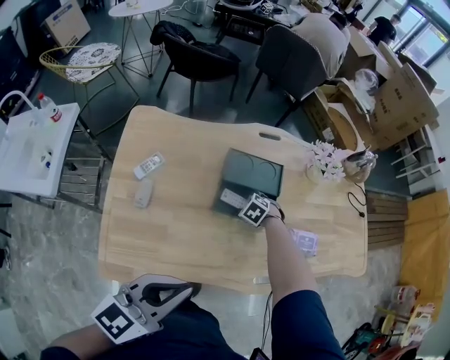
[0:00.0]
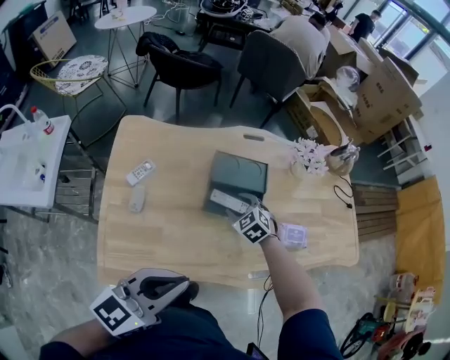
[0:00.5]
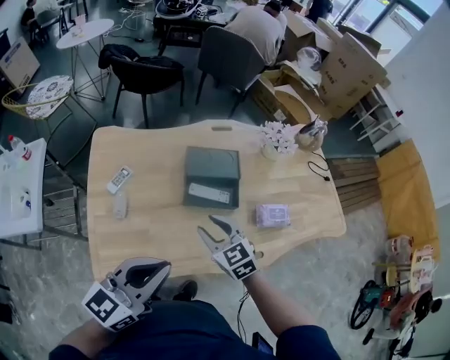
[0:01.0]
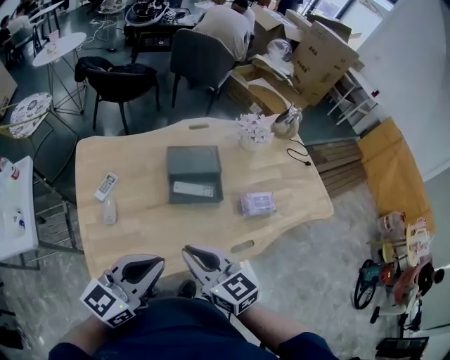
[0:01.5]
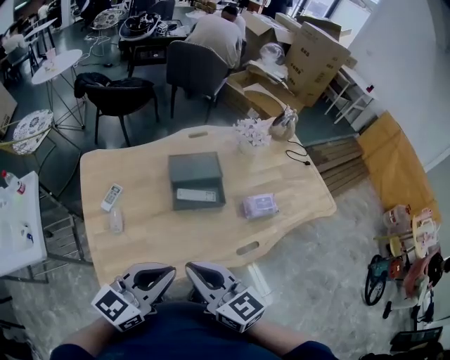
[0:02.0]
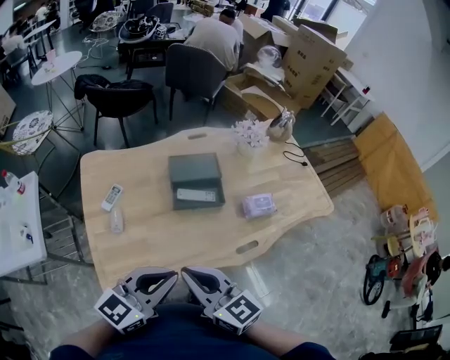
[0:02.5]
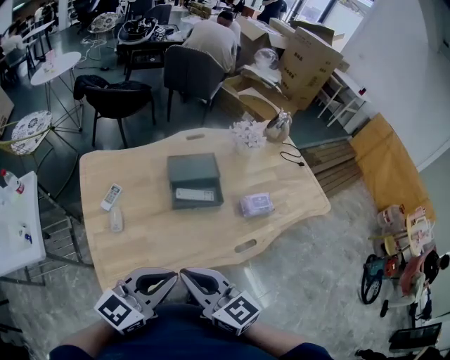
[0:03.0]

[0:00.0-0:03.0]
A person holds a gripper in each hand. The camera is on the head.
0:00.0 to 0:01.5: The right gripper travels upward by some 35 cm, tilts its fingers roughly 60 degrees upward, and closes up.
0:01.5 to 0:03.0: Both grippers travel together backward, some 5 cm.

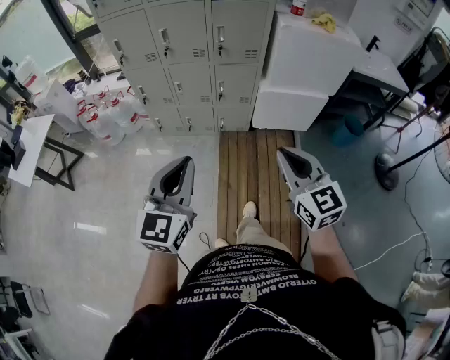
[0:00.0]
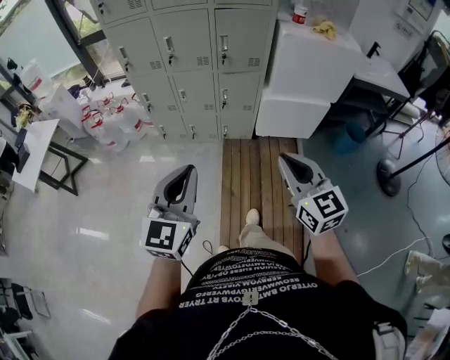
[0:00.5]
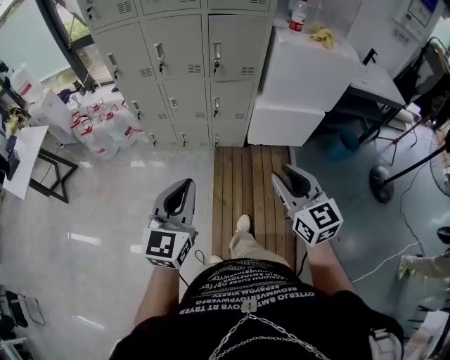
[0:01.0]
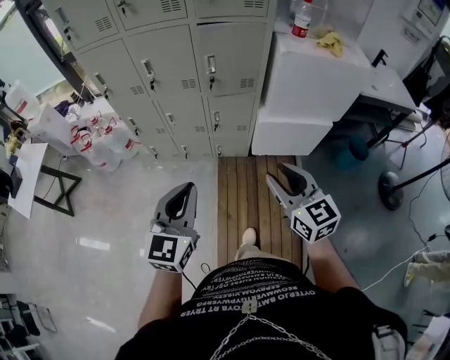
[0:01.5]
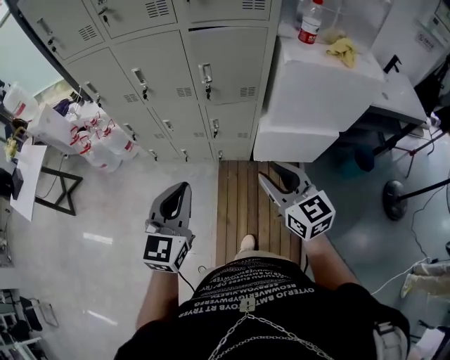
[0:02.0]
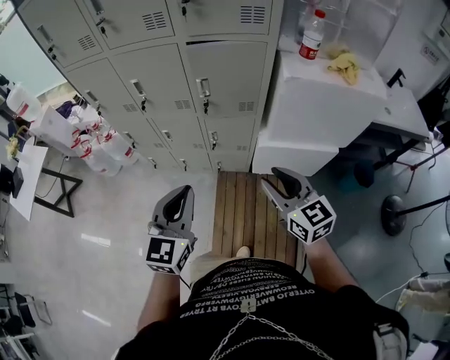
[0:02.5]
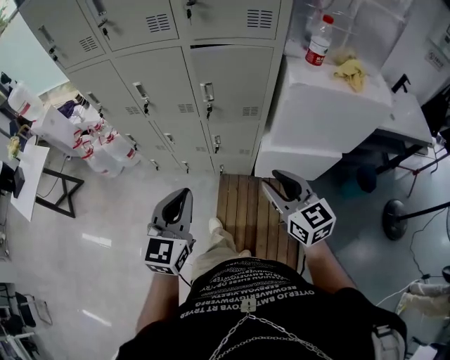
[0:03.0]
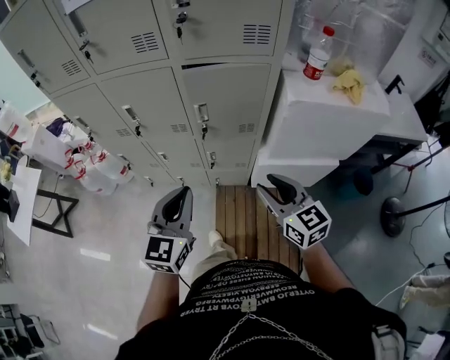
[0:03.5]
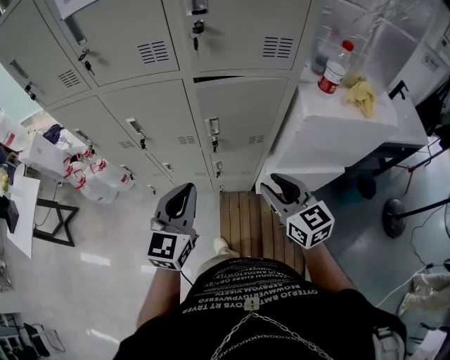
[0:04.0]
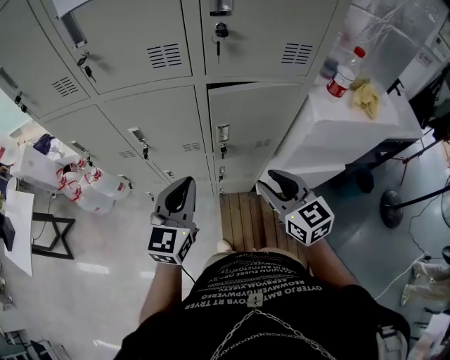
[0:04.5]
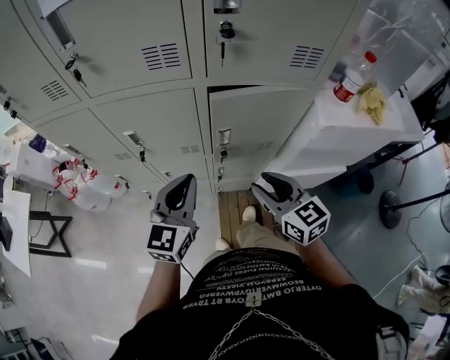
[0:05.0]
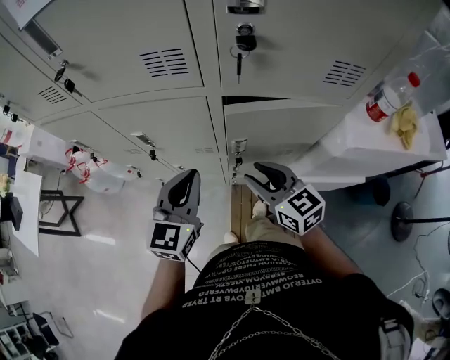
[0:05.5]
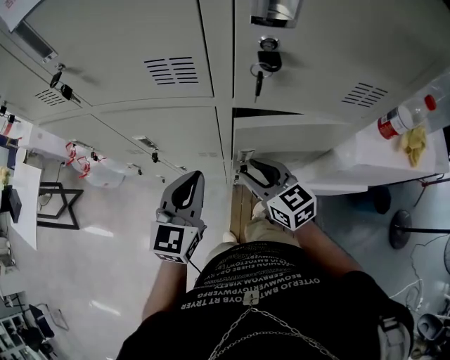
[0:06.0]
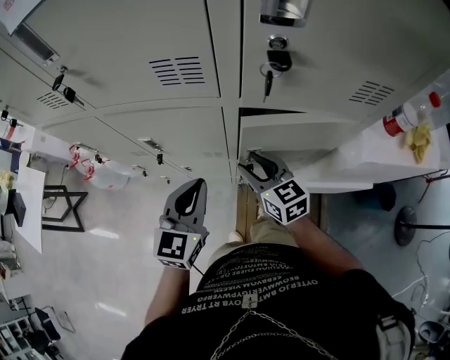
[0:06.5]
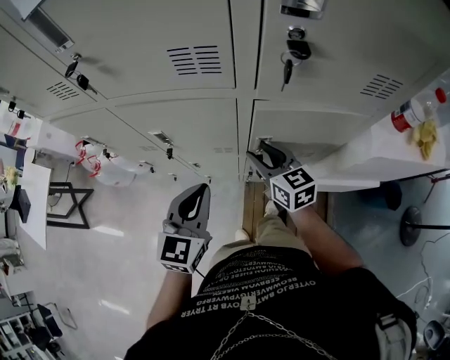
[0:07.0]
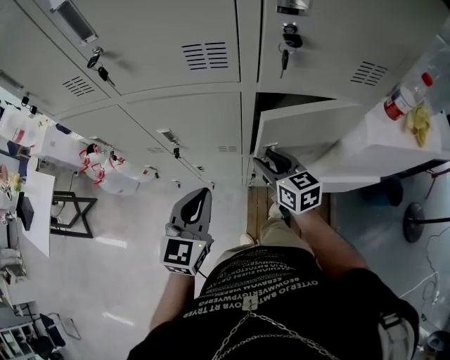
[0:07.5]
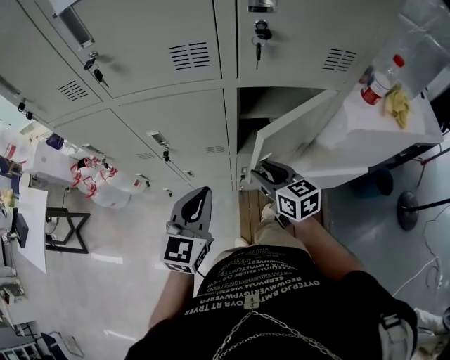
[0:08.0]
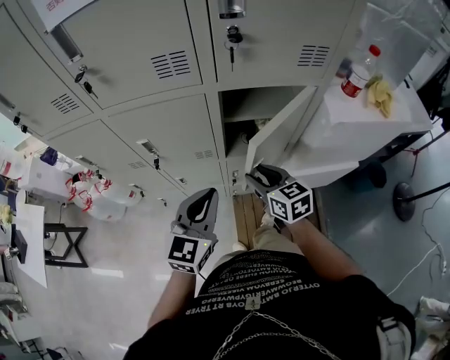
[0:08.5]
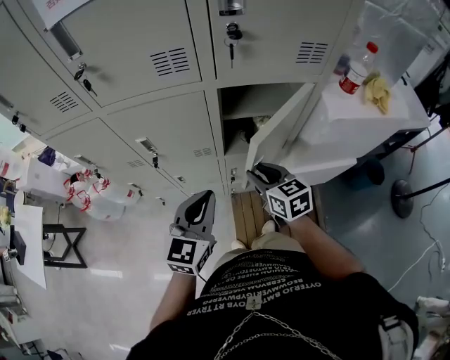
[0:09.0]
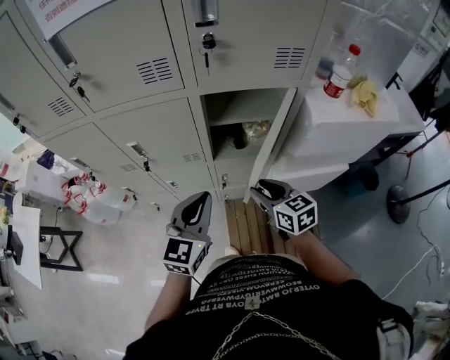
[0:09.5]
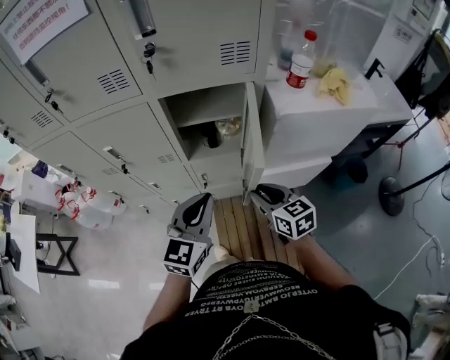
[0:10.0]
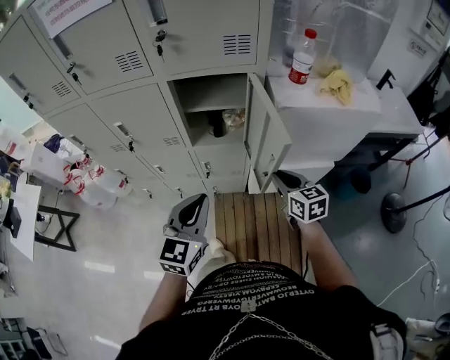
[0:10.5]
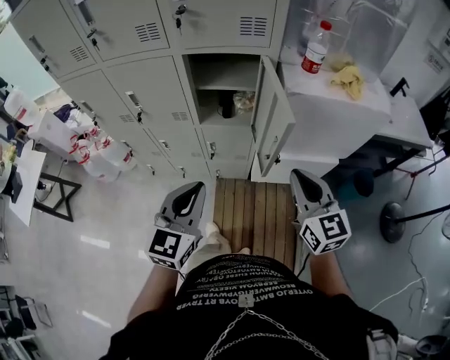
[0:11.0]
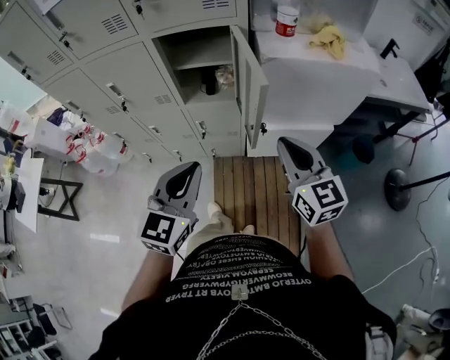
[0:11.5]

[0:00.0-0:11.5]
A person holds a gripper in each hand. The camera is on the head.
0:00.0 to 0:02.0: The grippers both shift forward by about 30 cm. The right gripper opens up.
0:02.0 to 0:04.0: The grippers both shift forward by about 20 cm.
0:04.0 to 0:06.0: The left gripper travels forward by roughly 20 cm. Meanwhile the right gripper shifts roughly 25 cm forward and to the left.
0:06.0 to 0:07.5: The left gripper goes about 10 cm backward and to the left.
0:07.5 to 0:09.5: The left gripper shifts some 10 cm to the right and backward. The right gripper travels backward and to the right by about 15 cm.
0:09.5 to 0:11.5: The left gripper heads backward and to the right, covering roughly 25 cm, while the right gripper is displaced to the right, backward and upward by some 30 cm, rotates about 20 degrees, and closes up.

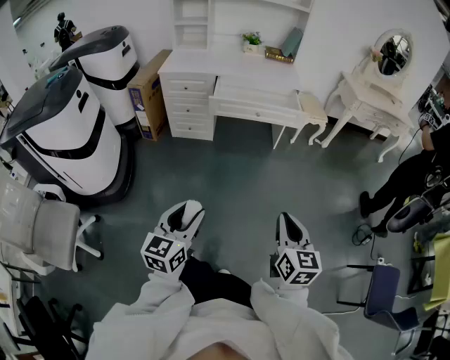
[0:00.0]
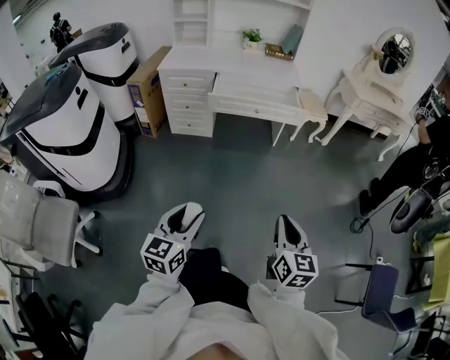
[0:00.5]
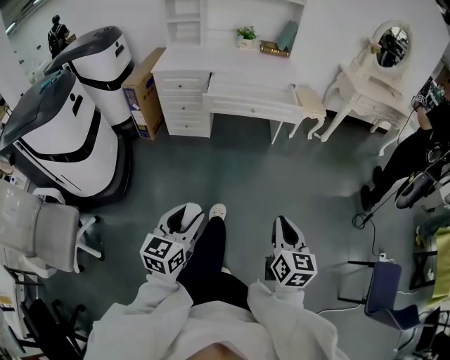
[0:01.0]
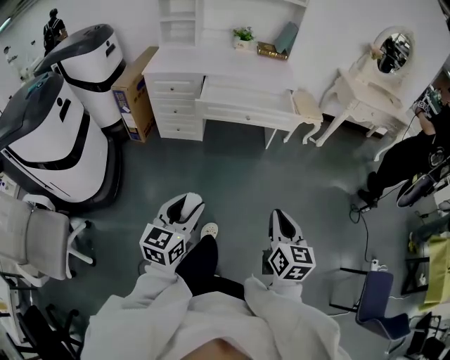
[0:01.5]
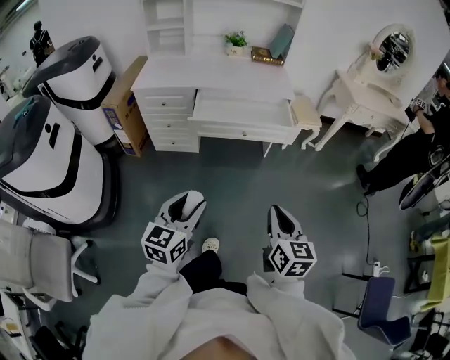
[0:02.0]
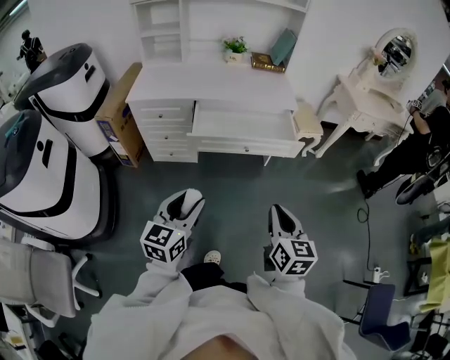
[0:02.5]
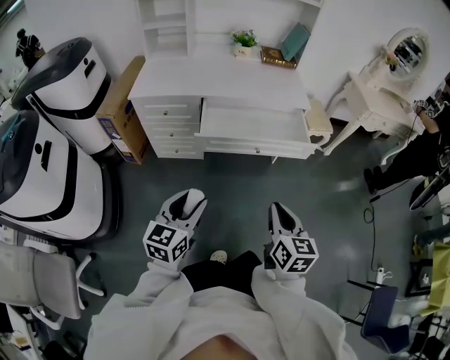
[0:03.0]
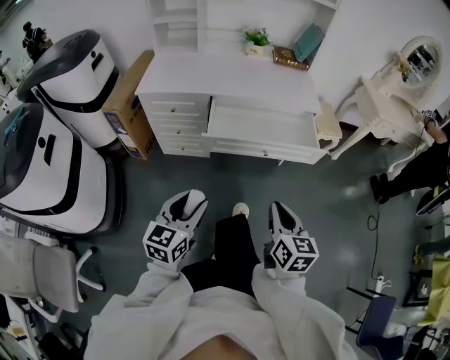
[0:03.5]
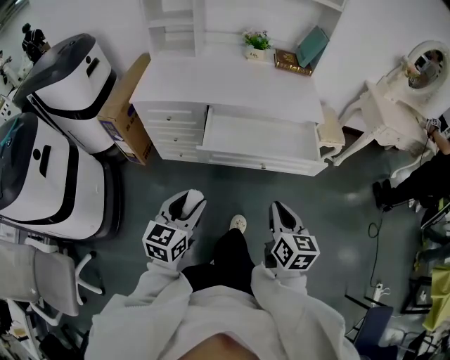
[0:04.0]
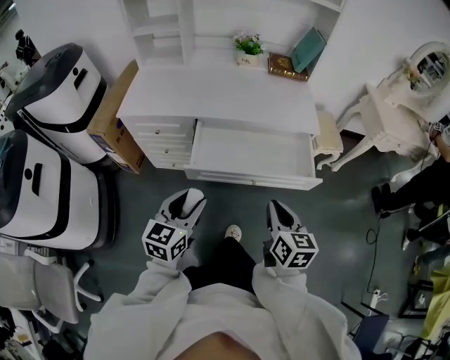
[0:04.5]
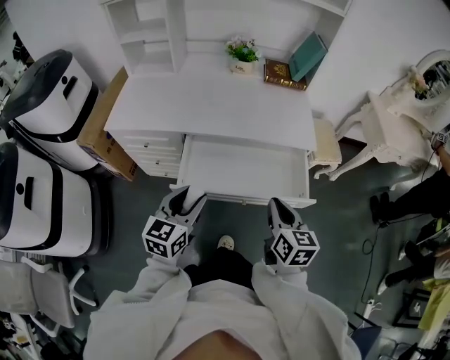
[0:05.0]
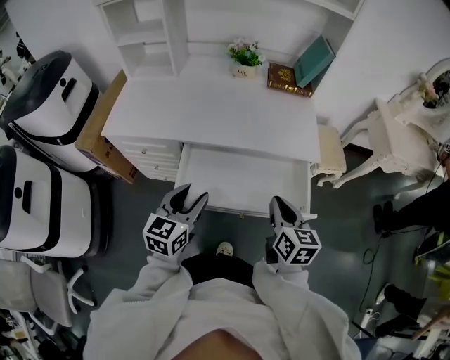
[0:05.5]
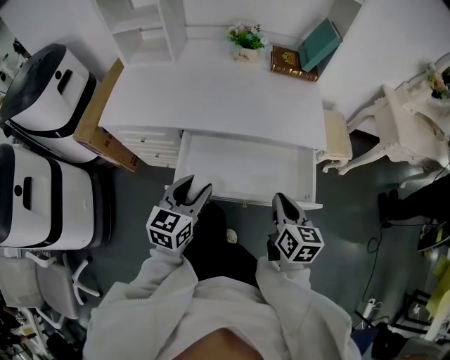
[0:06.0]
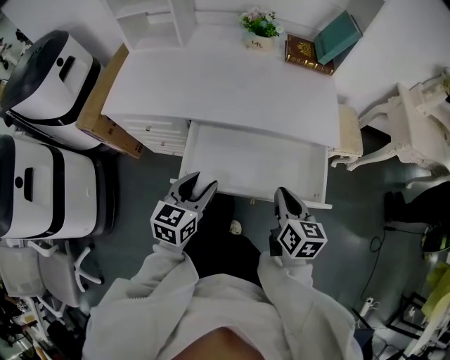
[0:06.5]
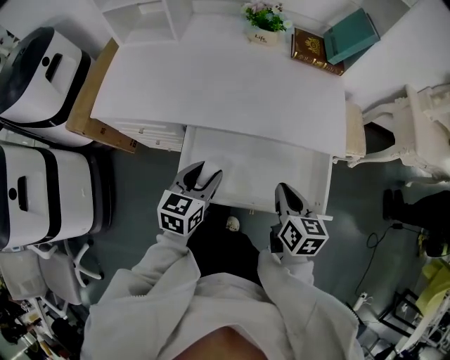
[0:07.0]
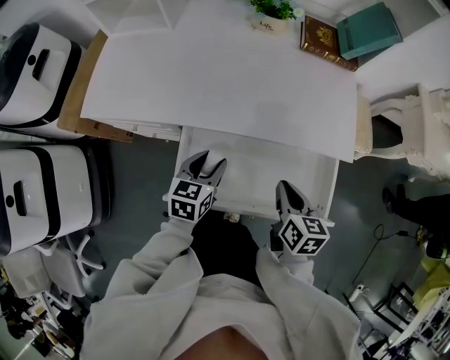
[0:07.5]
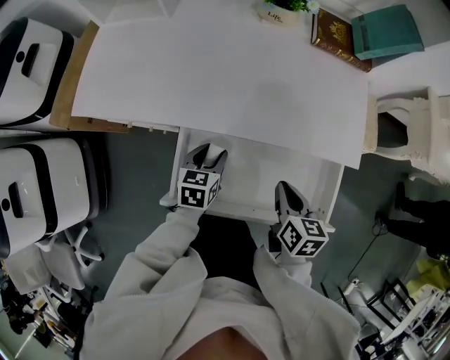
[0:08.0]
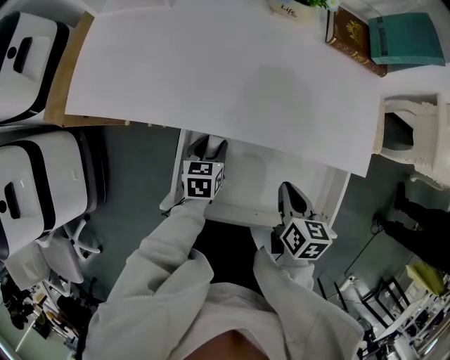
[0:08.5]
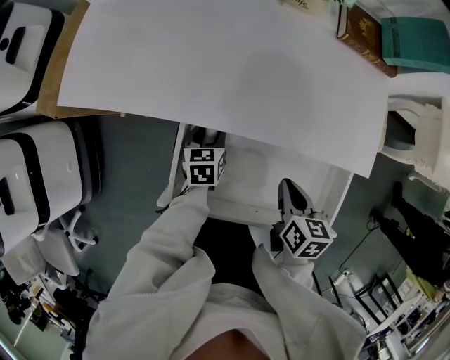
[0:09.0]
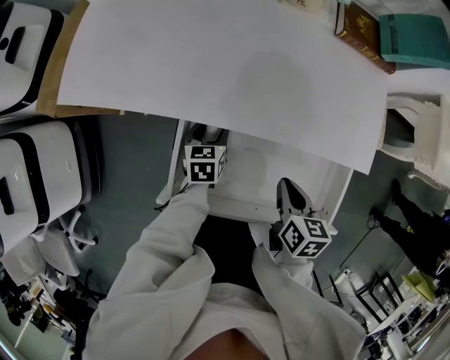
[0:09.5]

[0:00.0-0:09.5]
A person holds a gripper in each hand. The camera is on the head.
0:00.0 to 0:02.0: Both grippers move forward, about 20 cm.
0:02.0 to 0:04.0: The two grippers go some 20 cm forward.
0:04.0 to 0:05.5: The grippers both shift forward by roughly 25 cm.
0:05.5 to 0:07.5: Both grippers move forward and downward, roughly 15 cm. The left gripper turns by roughly 20 degrees.
0:07.5 to 0:09.5: The left gripper heads downward and forward, covering roughly 15 cm; the right gripper is displaced downward by about 5 cm.

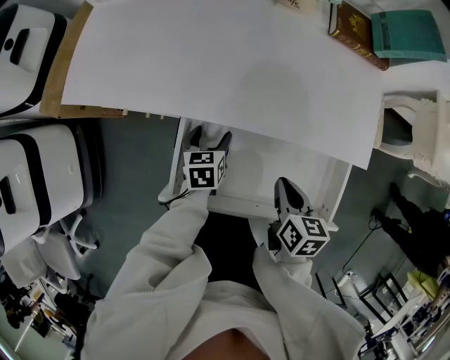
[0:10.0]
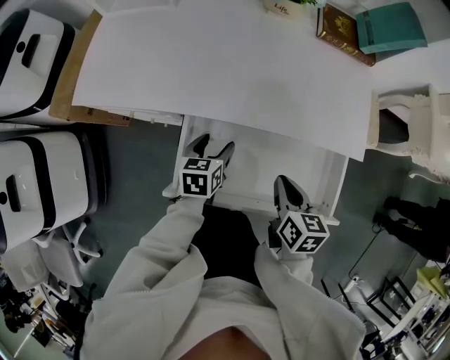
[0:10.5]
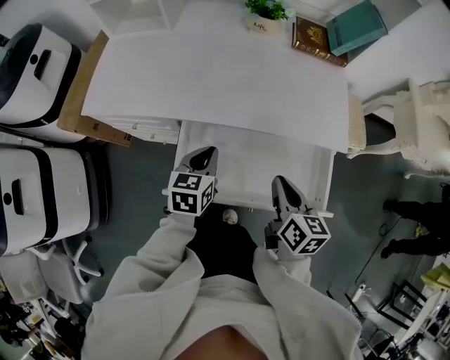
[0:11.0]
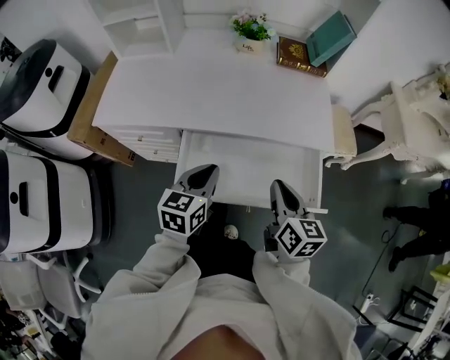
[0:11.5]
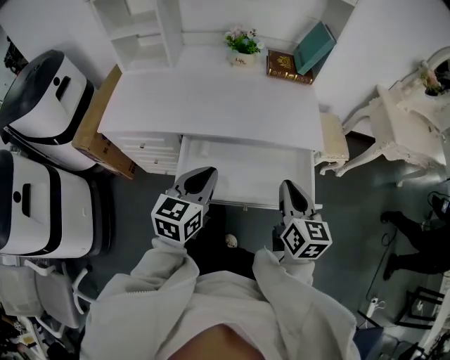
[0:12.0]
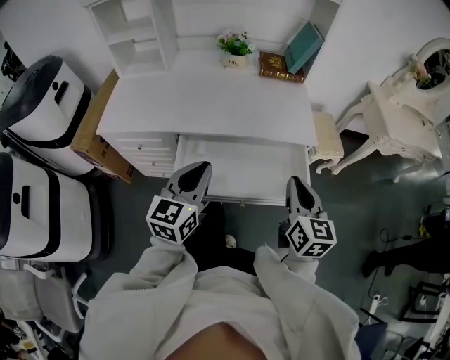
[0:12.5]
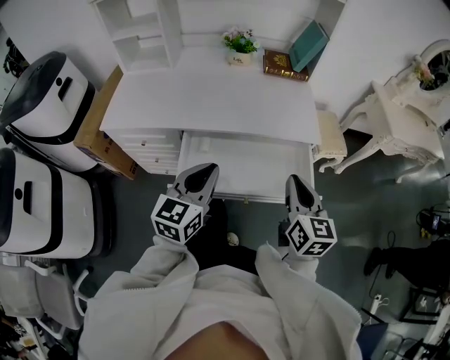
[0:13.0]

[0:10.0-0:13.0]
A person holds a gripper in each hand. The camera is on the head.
0:10.0 to 0:11.5: The right gripper goes approximately 15 cm upward and backward, and swivels approximately 30 degrees; the left gripper is displaced upward and backward by roughly 25 cm, rotates about 30 degrees, and closes up.
0:11.5 to 0:13.0: The left gripper is displaced upward and backward by some 10 cm. Meanwhile the right gripper heads upward and to the right, covering about 10 cm.
